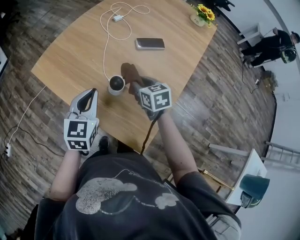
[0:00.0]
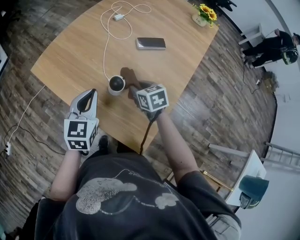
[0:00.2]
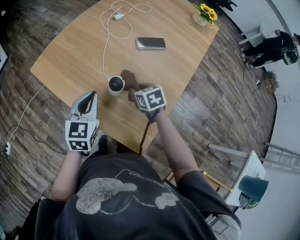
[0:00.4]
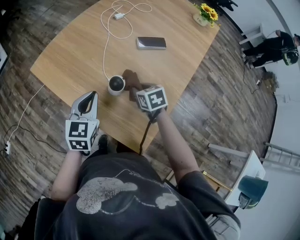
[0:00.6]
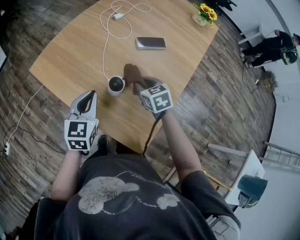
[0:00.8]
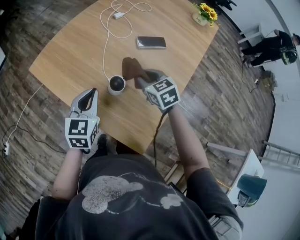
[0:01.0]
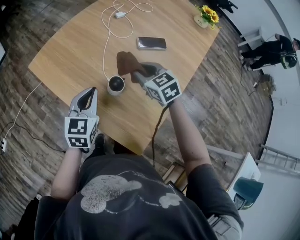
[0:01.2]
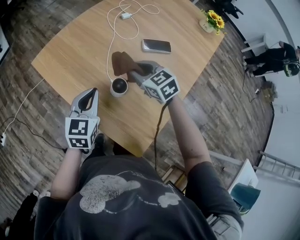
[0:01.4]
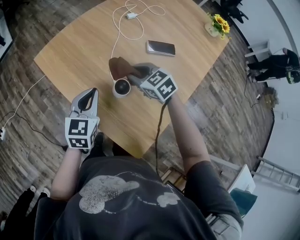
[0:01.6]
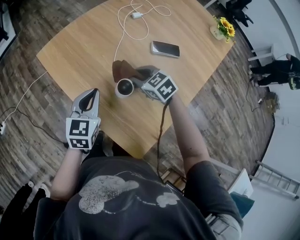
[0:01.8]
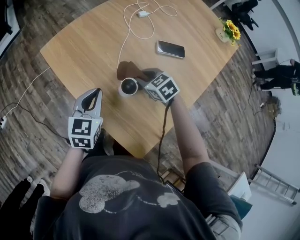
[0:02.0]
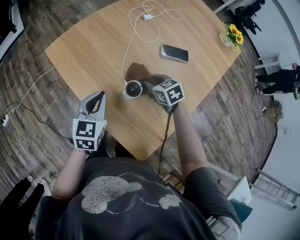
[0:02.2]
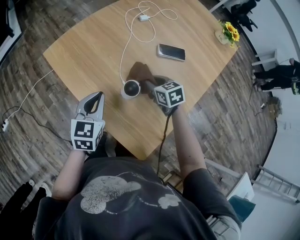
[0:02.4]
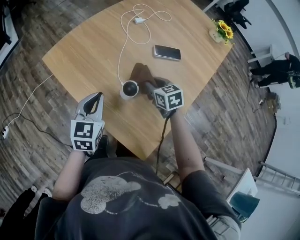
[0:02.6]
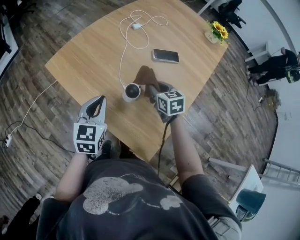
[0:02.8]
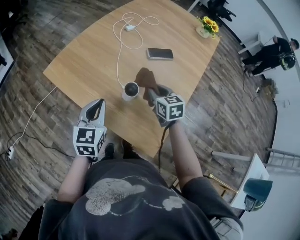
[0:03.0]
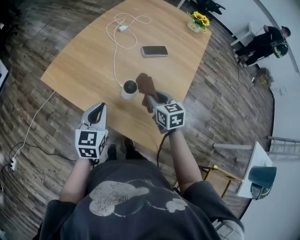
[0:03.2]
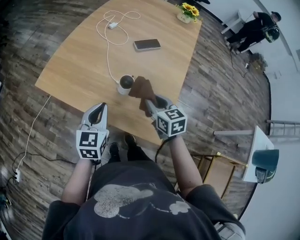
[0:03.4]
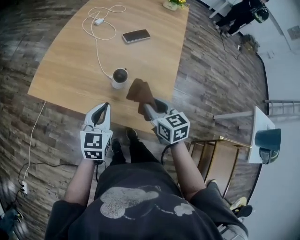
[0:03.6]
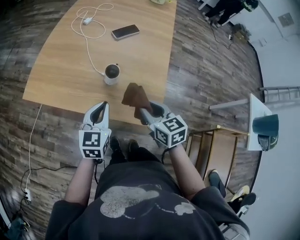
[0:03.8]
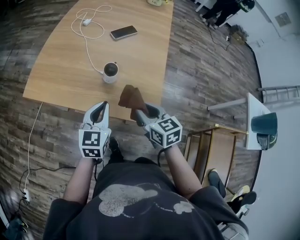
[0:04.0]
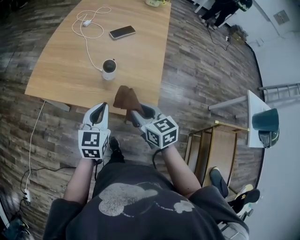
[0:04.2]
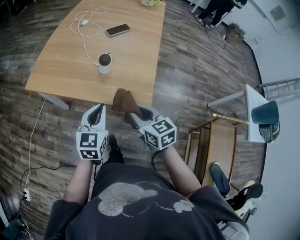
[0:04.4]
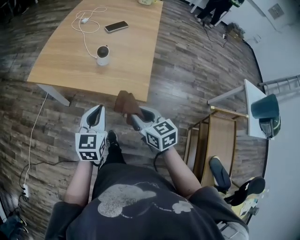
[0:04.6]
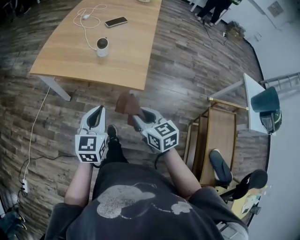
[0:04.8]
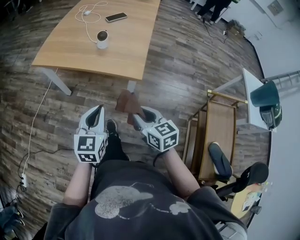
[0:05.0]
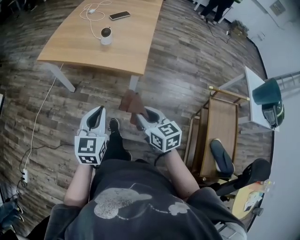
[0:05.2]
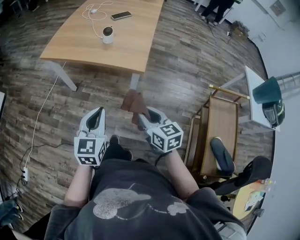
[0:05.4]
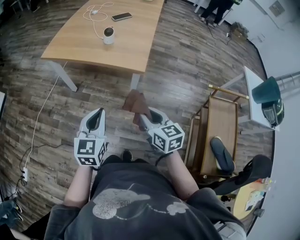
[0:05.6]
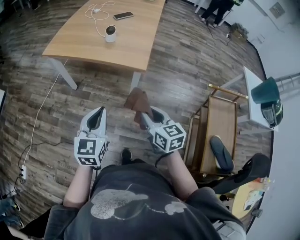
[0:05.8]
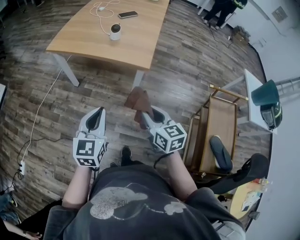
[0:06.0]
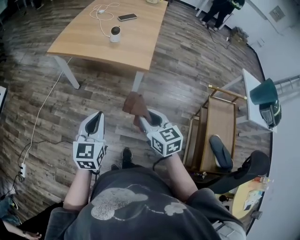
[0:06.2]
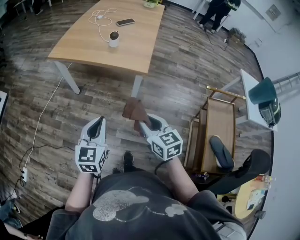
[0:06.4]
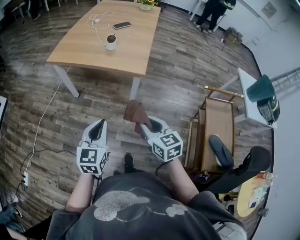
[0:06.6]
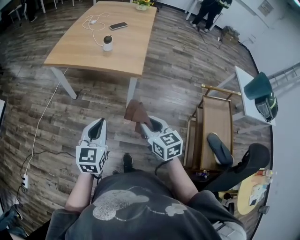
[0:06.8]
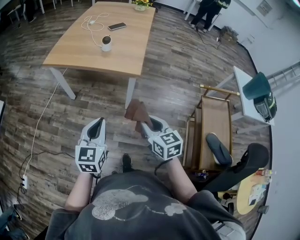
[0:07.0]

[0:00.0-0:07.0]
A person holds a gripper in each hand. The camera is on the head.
0:00.0 to 0:01.4: The right gripper shifts some 5 cm forward, and rotates some 30 degrees.
0:01.4 to 0:02.8: The right gripper ends up some 5 cm from where it was, and changes its angle by roughly 30 degrees.
0:02.8 to 0:04.2: The left gripper heads backward and to the right, covering approximately 10 cm, and turns by about 30 degrees. Meanwhile the right gripper goes about 25 cm backward, and swivels approximately 20 degrees.
0:04.2 to 0:05.6: Both grippers move backward, approximately 30 cm.
0:05.6 to 0:07.0: Both grippers travel together backward, about 5 cm.

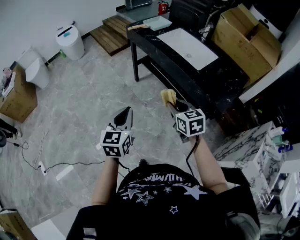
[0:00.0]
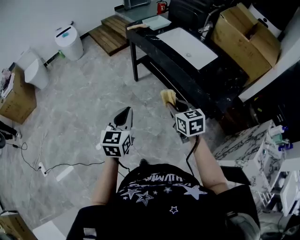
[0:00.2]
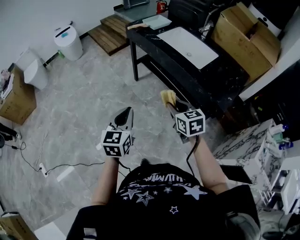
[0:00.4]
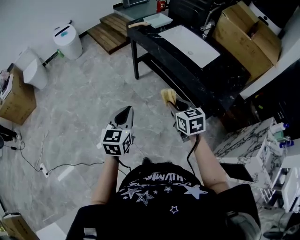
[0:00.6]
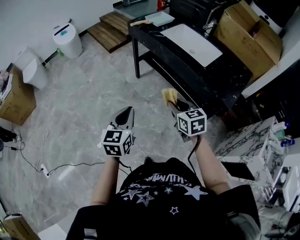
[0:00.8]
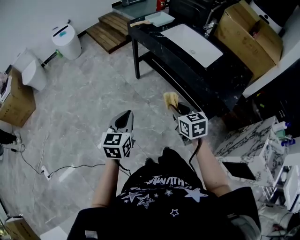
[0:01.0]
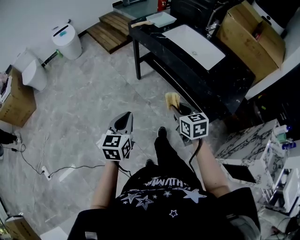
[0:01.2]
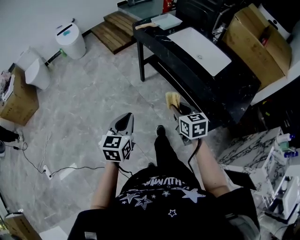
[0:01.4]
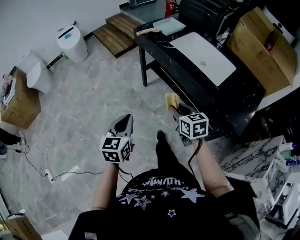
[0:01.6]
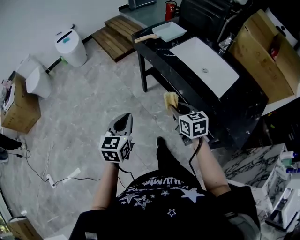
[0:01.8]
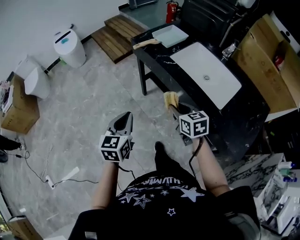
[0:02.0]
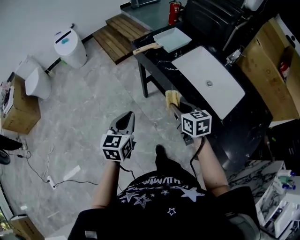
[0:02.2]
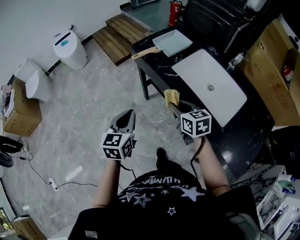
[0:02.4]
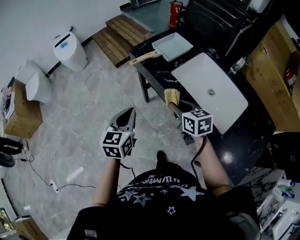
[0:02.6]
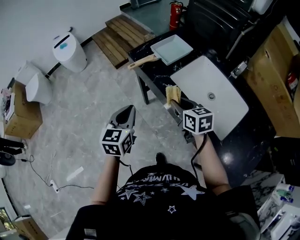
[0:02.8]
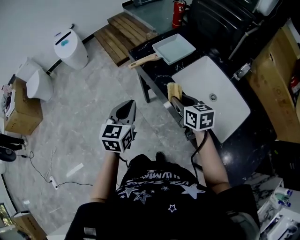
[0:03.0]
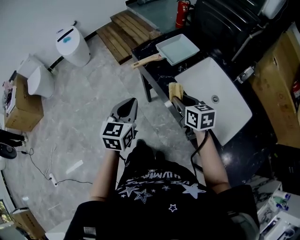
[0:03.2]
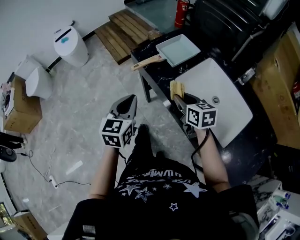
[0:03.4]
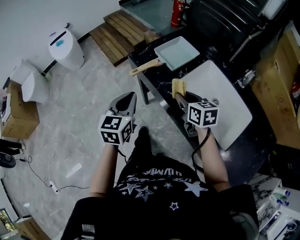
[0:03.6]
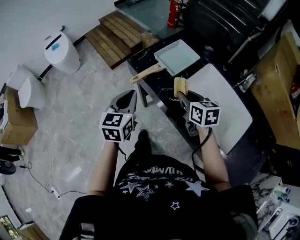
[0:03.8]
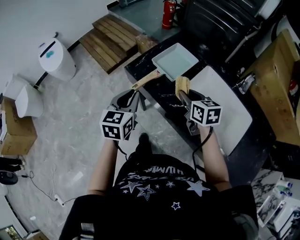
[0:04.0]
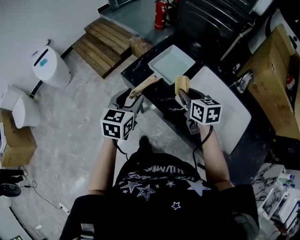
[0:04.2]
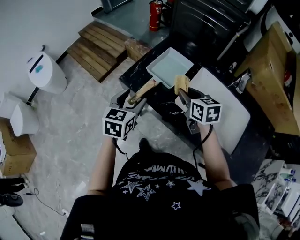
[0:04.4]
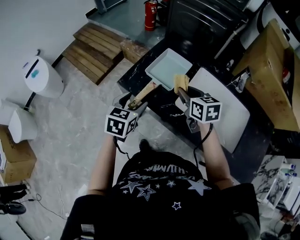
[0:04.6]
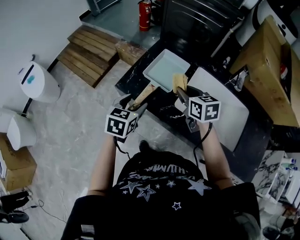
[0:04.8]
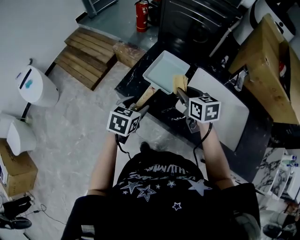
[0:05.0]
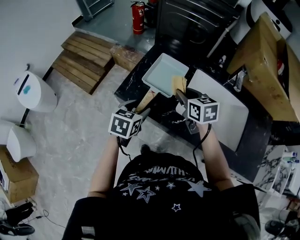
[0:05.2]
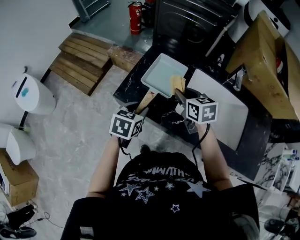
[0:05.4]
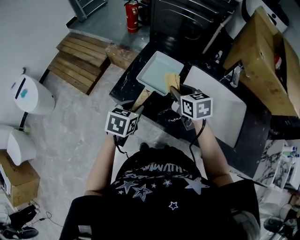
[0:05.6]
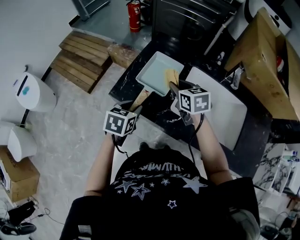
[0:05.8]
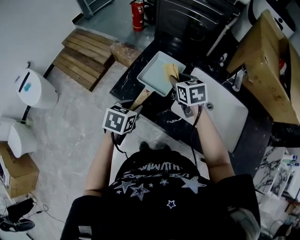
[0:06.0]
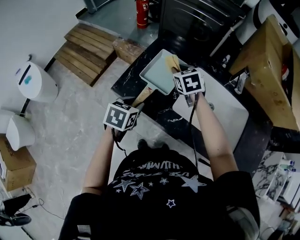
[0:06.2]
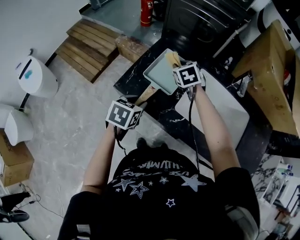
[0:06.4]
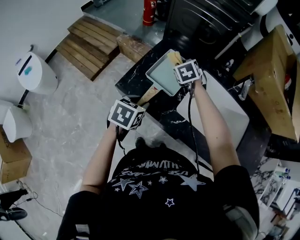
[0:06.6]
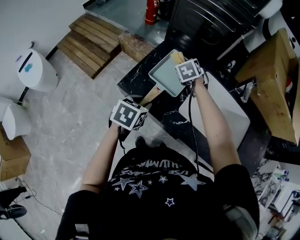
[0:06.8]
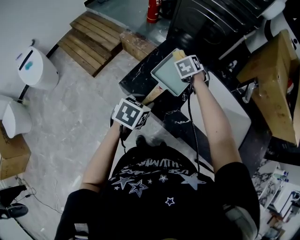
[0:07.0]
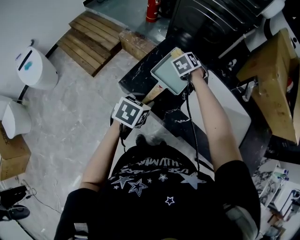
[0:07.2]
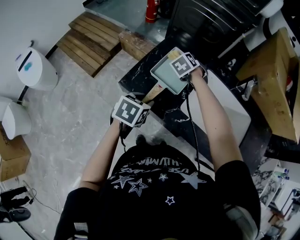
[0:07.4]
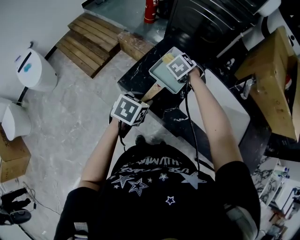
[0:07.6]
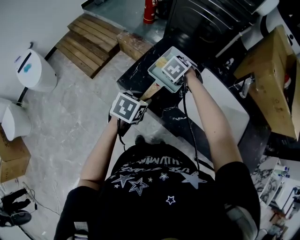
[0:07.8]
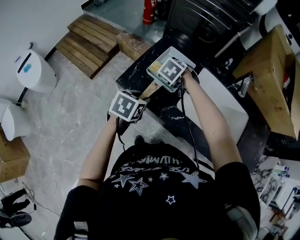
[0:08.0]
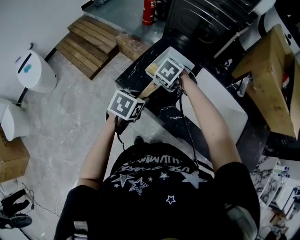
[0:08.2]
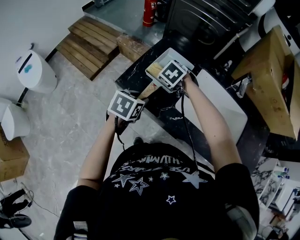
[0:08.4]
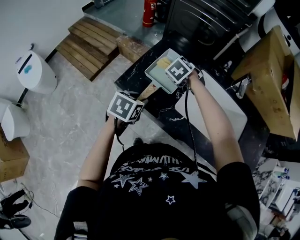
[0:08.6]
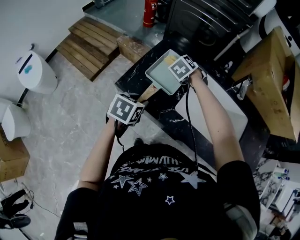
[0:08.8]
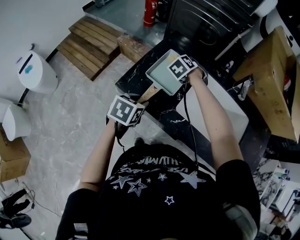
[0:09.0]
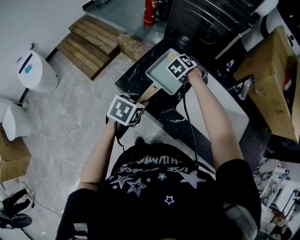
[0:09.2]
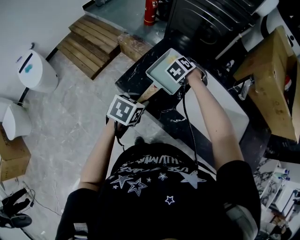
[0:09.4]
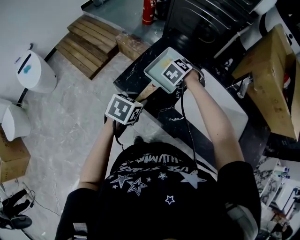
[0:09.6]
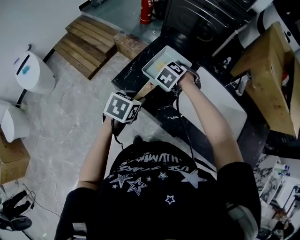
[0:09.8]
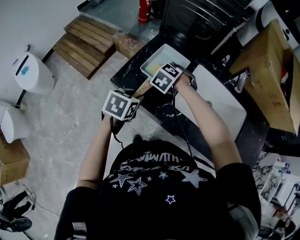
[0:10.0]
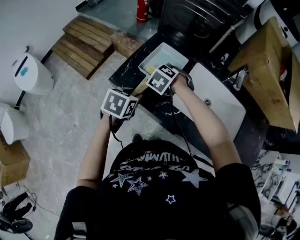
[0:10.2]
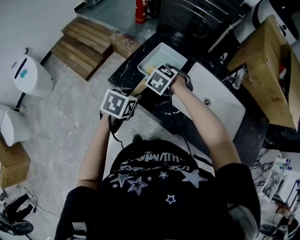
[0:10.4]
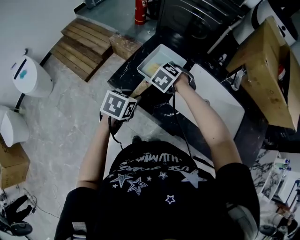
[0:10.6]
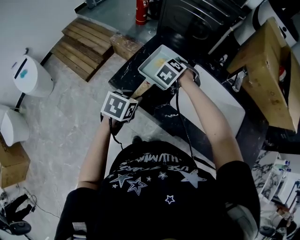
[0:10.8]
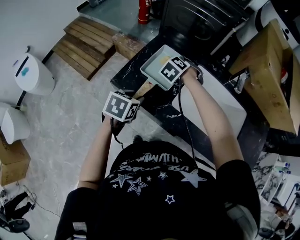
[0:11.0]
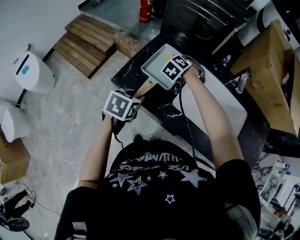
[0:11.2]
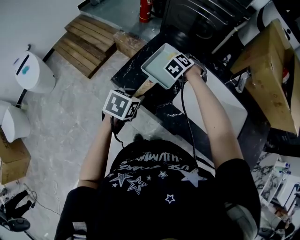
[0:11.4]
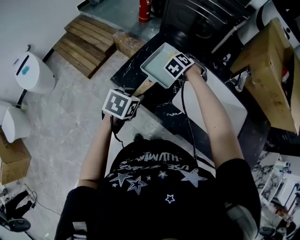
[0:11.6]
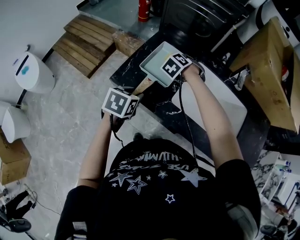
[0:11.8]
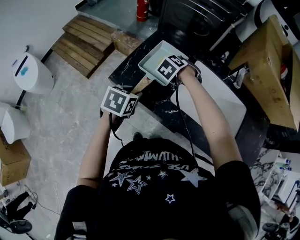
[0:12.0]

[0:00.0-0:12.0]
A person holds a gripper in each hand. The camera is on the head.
0:00.0 to 0:01.6: The left gripper goes roughly 15 cm forward and to the left. The right gripper travels forward by approximately 15 cm.
0:01.6 to 0:03.0: The grippers both shift forward by about 35 cm.
0:03.0 to 0:04.4: Both grippers travel together forward, about 20 cm. The left gripper swivels some 20 degrees, and opens its fingers.
0:04.4 to 0:06.0: The right gripper travels forward by approximately 10 cm, while the left gripper is displaced downward by approximately 5 cm, turns by roughly 20 degrees, and closes up.
0:06.0 to 0:07.6: The right gripper travels to the left, downward and forward by about 10 cm, and swivels approximately 40 degrees.
0:09.0 to 0:10.4: The right gripper travels backward by about 15 cm.
0:10.4 to 0:12.0: The right gripper moves forward, approximately 5 cm.

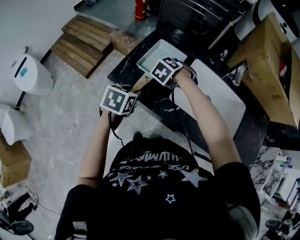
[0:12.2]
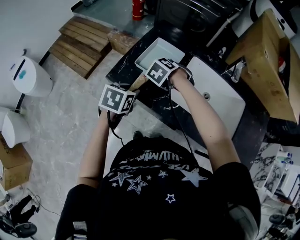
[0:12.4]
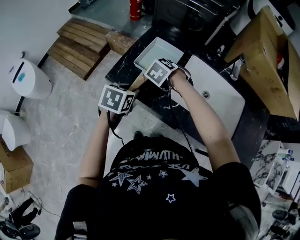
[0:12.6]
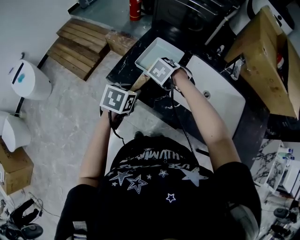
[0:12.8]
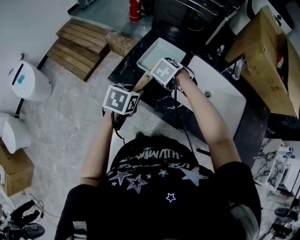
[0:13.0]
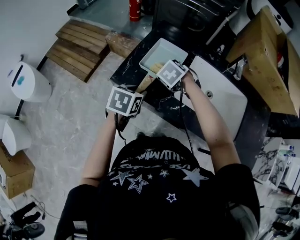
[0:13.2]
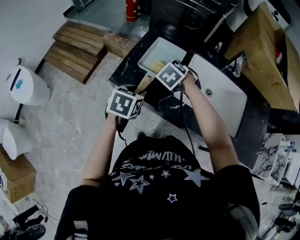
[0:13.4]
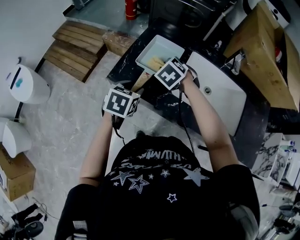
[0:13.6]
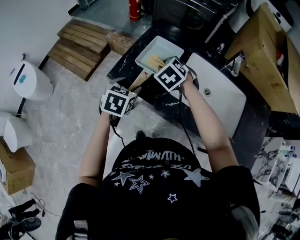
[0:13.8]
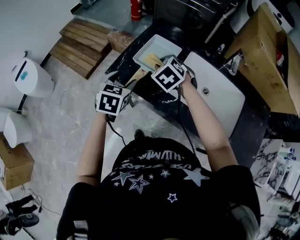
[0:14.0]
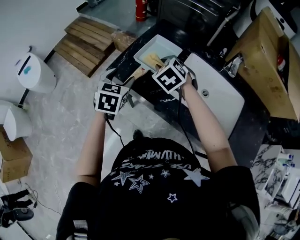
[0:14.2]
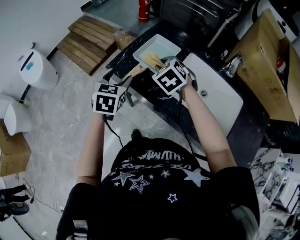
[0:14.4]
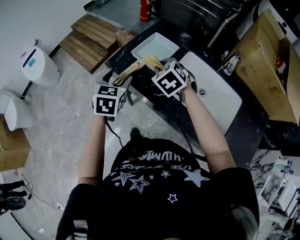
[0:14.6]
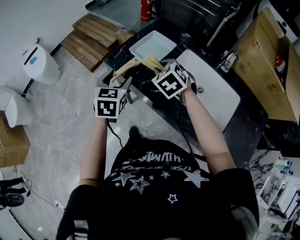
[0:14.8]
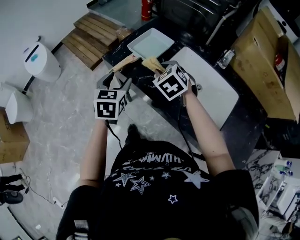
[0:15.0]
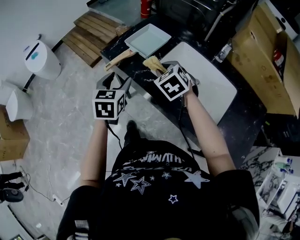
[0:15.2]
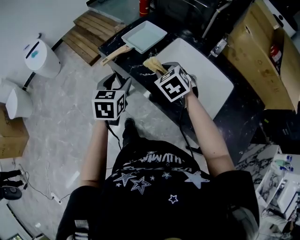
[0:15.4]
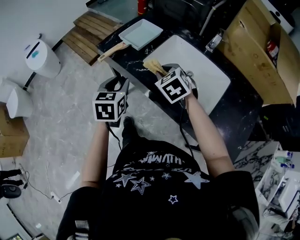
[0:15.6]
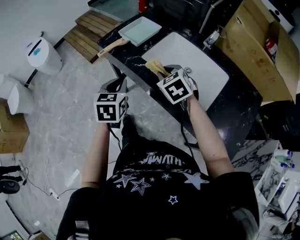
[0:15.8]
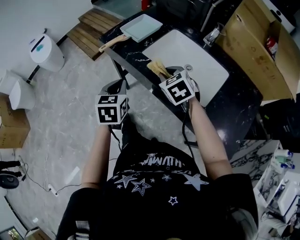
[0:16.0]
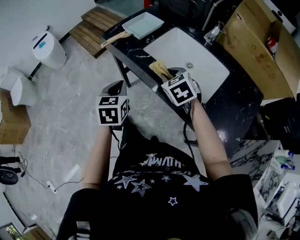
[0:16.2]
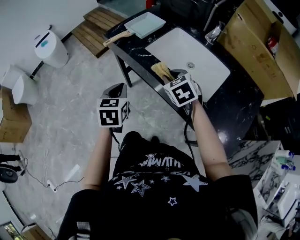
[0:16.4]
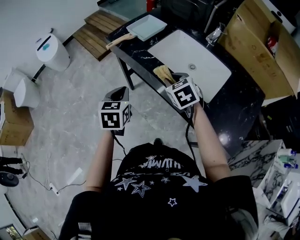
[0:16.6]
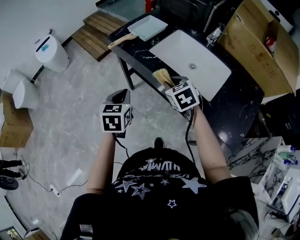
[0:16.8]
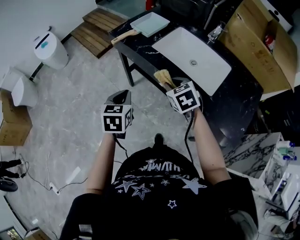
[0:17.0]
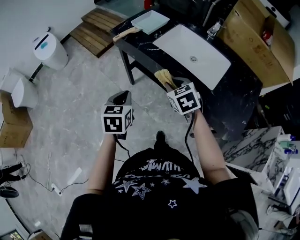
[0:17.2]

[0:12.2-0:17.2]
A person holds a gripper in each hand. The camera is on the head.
0:12.2 to 0:13.8: The left gripper opens its fingers. The right gripper goes approximately 5 cm upward.
0:13.8 to 0:15.6: Both grippers move backward and to the right, about 25 cm. The left gripper turns by some 30 degrees.
0:15.6 to 0:17.2: Both grippers travel together backward, roughly 20 cm. The left gripper closes.
